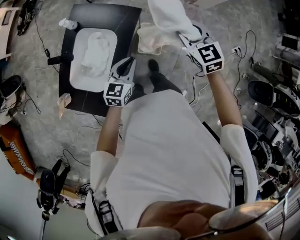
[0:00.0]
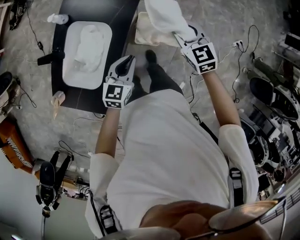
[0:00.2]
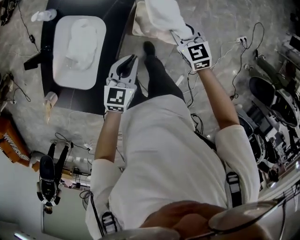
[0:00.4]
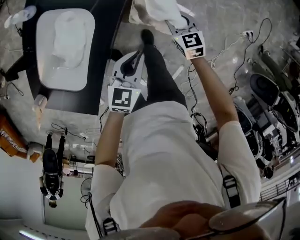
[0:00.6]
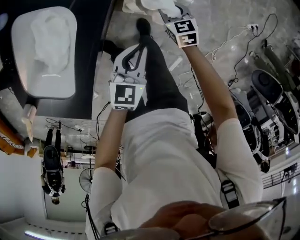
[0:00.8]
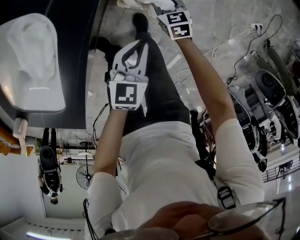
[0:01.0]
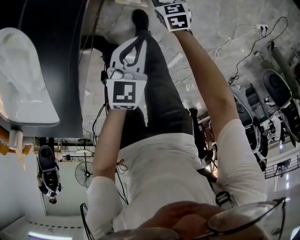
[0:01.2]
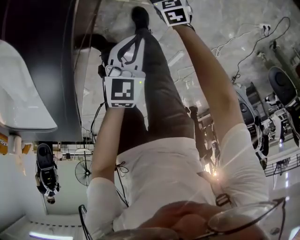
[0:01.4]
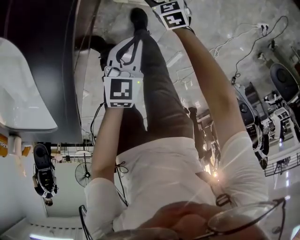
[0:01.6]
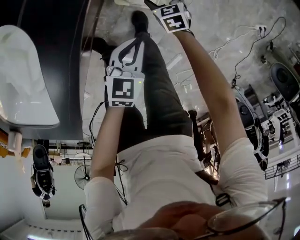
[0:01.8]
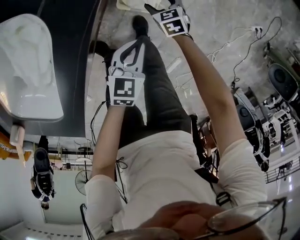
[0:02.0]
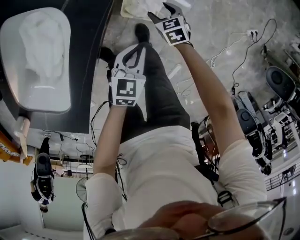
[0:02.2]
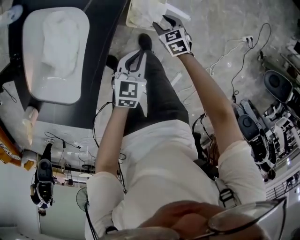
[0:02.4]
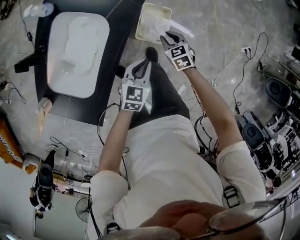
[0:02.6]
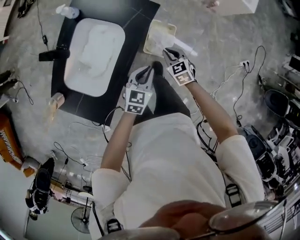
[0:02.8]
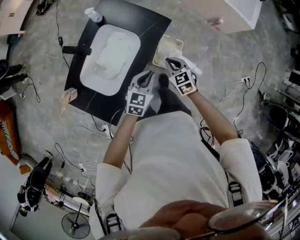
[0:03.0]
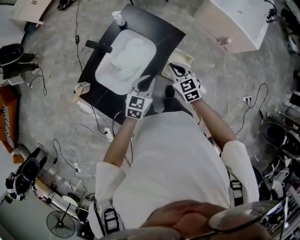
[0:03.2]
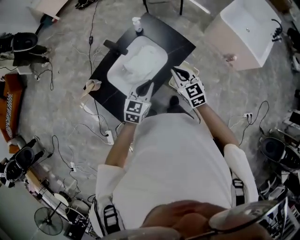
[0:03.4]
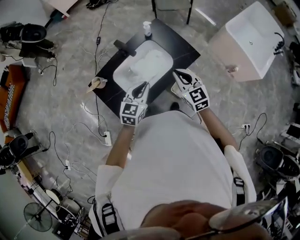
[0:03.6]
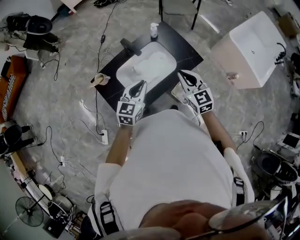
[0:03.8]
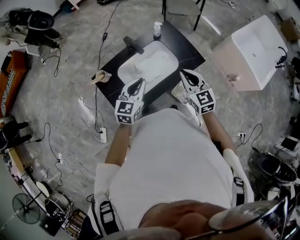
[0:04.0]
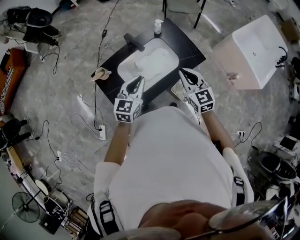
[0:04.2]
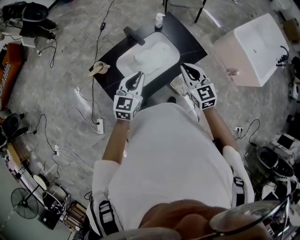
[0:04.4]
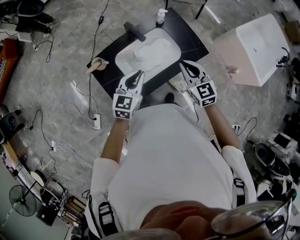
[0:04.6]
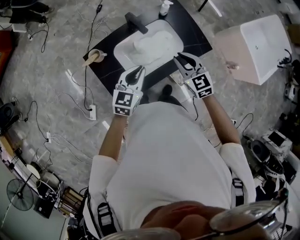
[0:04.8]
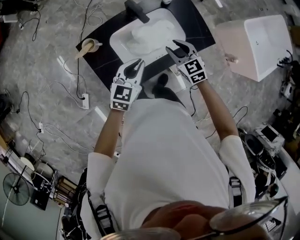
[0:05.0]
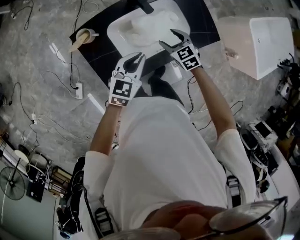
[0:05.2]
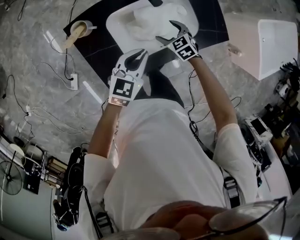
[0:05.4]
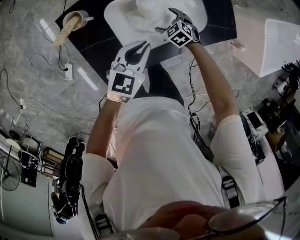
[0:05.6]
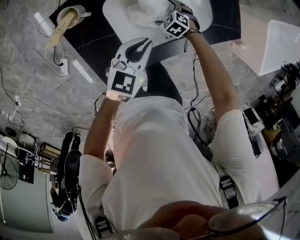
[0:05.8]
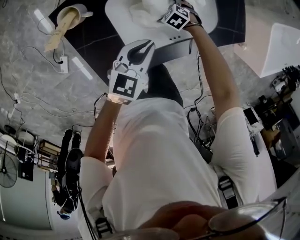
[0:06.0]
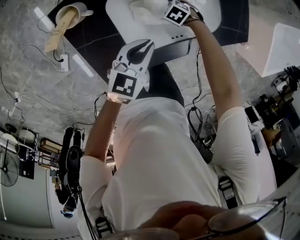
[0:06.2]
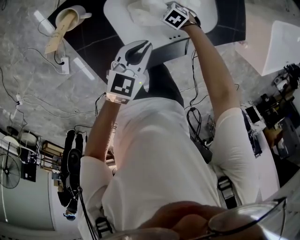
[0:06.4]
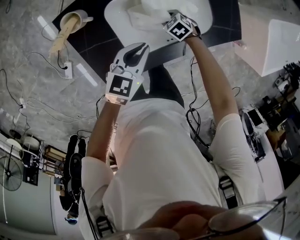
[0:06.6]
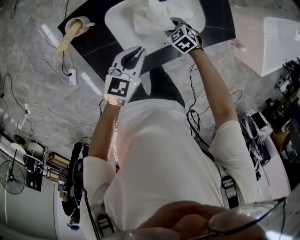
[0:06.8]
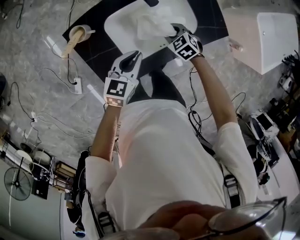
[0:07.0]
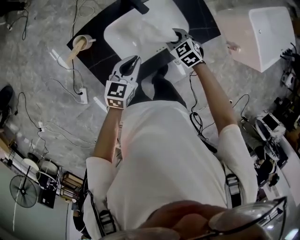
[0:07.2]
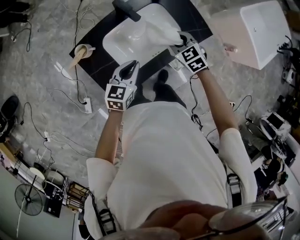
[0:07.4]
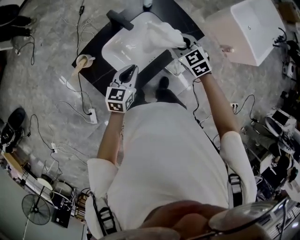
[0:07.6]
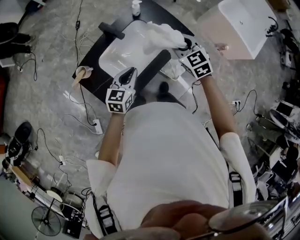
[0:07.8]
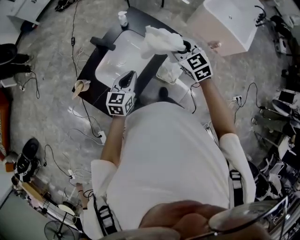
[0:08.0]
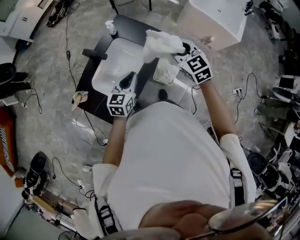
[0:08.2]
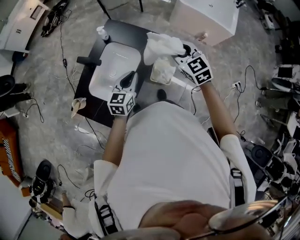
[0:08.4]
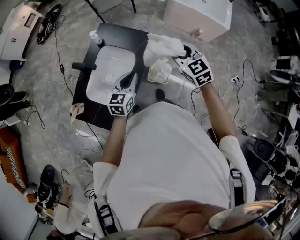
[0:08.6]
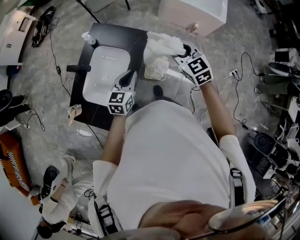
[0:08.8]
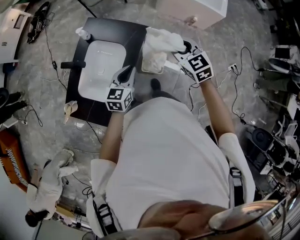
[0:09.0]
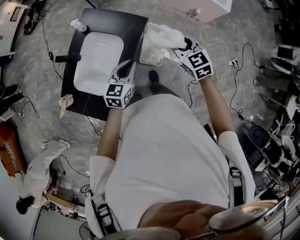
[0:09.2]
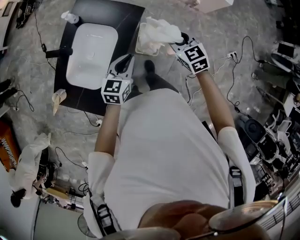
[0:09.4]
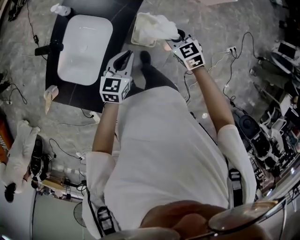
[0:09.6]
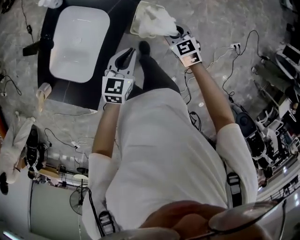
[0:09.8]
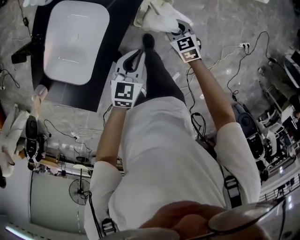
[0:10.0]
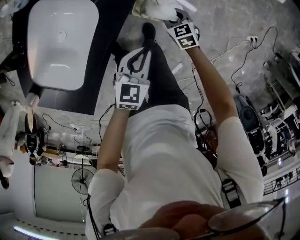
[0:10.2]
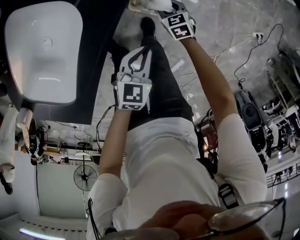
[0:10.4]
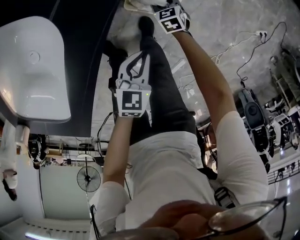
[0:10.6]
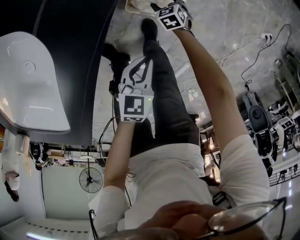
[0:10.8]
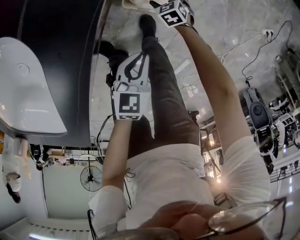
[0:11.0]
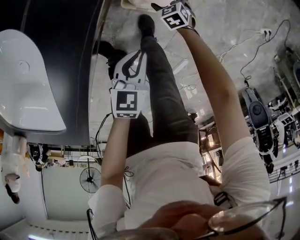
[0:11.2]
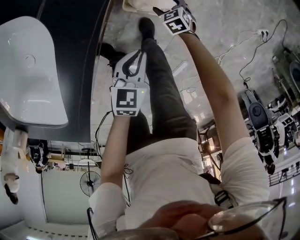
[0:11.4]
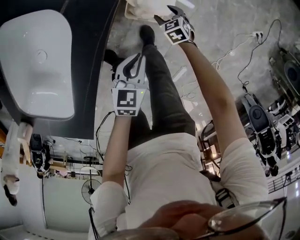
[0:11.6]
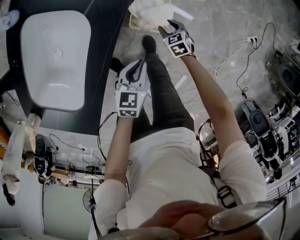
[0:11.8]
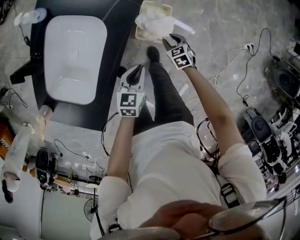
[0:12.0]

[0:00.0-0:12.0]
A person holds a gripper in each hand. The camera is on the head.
0.0 to 1.6 s: The right gripper travels downward by some 70 cm, angles its fingers downward, by roughly 30 degrees, and opens its fingers. The left gripper heads downward, covering some 40 cm.
1.6 to 3.0 s: The left gripper is displaced upward and backward by some 30 cm; the right gripper heads upward and backward, covering approximately 40 cm, changes its angle by roughly 20 degrees, and closes.
3.0 to 4.4 s: The right gripper goes approximately 30 cm upward and to the left, and rotates some 30 degrees; the left gripper goes some 30 cm to the left and upward, and swivels about 30 degrees.
4.4 to 6.0 s: The right gripper shifts roughly 50 cm downward, points its fingers about 60 degrees further downward, and opens its fingers. Meanwhile the left gripper travels downward by about 25 cm, and rotates about 20 degrees.
6.0 to 7.6 s: The left gripper travels upward by approximately 15 cm. The right gripper goes some 40 cm upward, angles its fingers upward, by roughly 40 degrees, and closes.
7.6 to 9.0 s: The right gripper changes place by about 30 cm, and swivels approximately 30 degrees. Meanwhile the left gripper shifts by about 25 cm, and swivels about 30 degrees.
9.0 to 10.4 s: The left gripper travels downward by approximately 40 cm, and swivels about 20 degrees; the right gripper shifts roughly 70 cm downward, and changes its angle by some 30 degrees.
10.4 to 12.0 s: The right gripper moves upward and backward, roughly 15 cm, and opens, then closes again. Meanwhile the left gripper moves upward and to the left, some 10 cm.

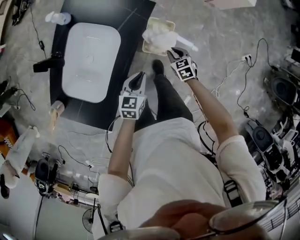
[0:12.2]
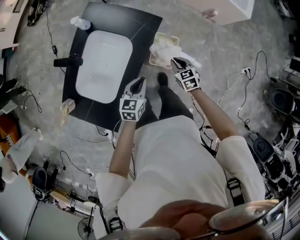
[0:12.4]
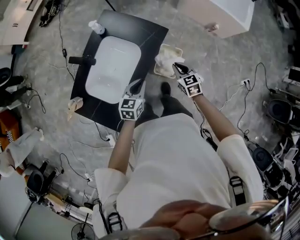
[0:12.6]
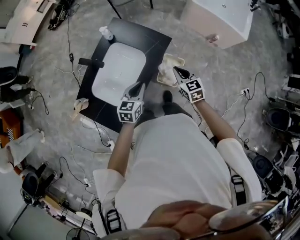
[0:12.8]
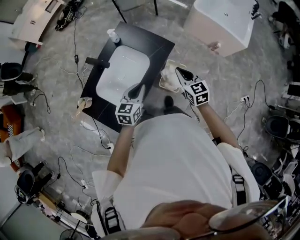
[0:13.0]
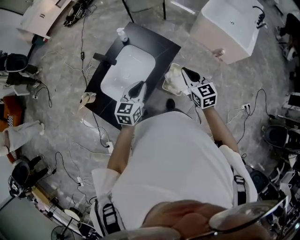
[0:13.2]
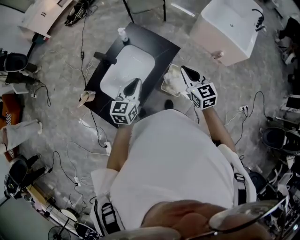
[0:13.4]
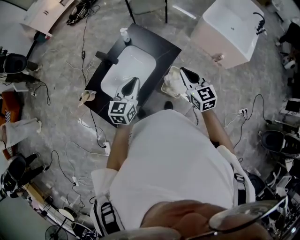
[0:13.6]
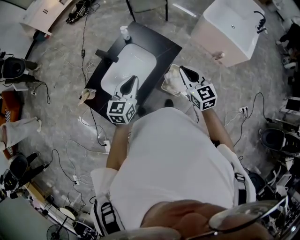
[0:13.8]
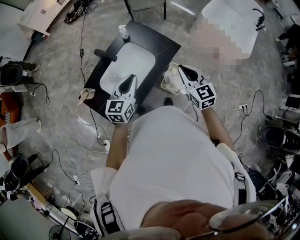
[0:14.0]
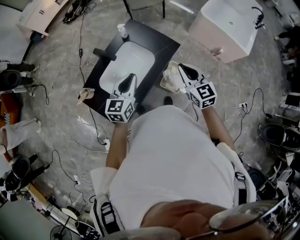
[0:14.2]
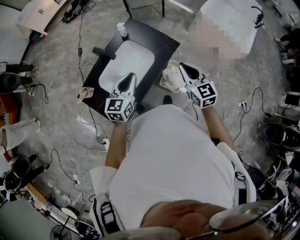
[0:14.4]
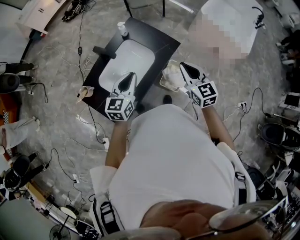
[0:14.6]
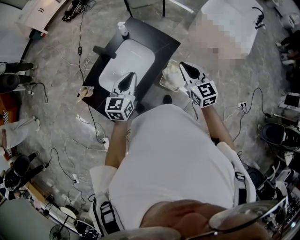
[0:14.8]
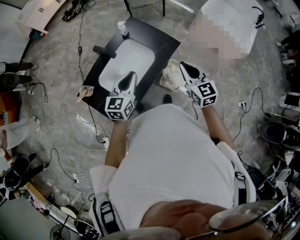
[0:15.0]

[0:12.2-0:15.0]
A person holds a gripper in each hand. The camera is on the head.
12.2 to 13.6 s: The left gripper heads upward and to the left, covering some 40 cm, and swivels roughly 30 degrees, while the right gripper shifts roughly 50 cm upward, and tilts its fingers roughly 40 degrees upward.
13.6 to 15.0 s: The grippers stay close to where they were, moving slightly.

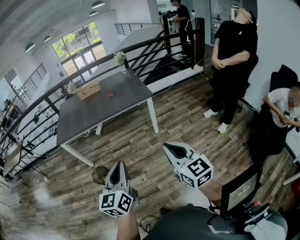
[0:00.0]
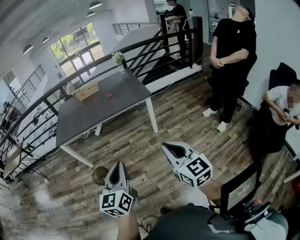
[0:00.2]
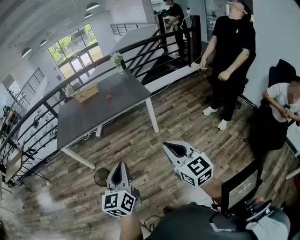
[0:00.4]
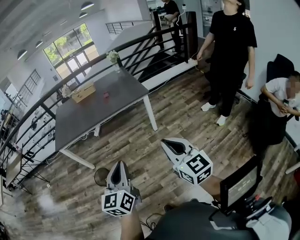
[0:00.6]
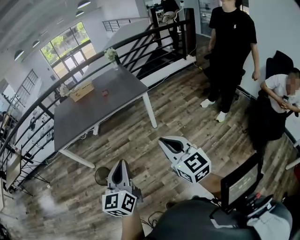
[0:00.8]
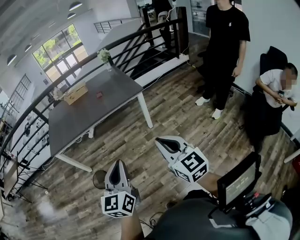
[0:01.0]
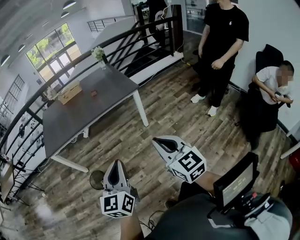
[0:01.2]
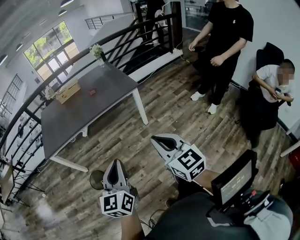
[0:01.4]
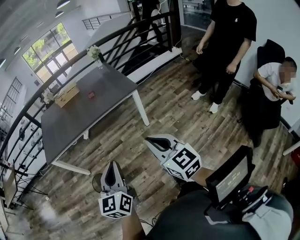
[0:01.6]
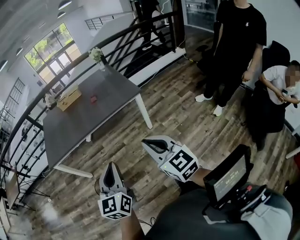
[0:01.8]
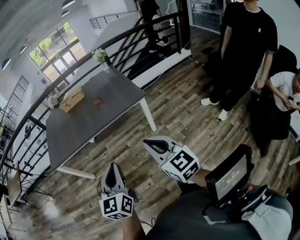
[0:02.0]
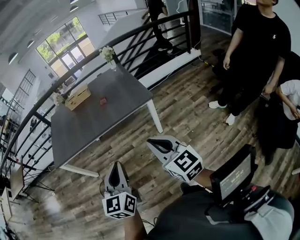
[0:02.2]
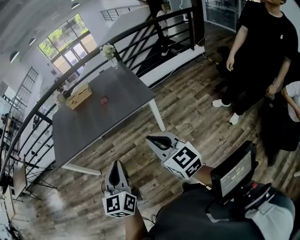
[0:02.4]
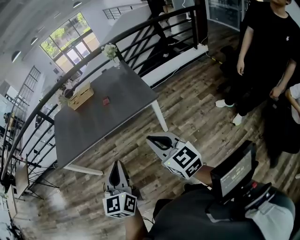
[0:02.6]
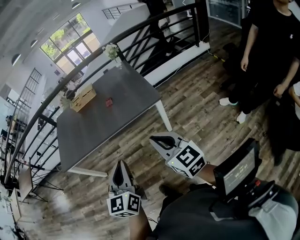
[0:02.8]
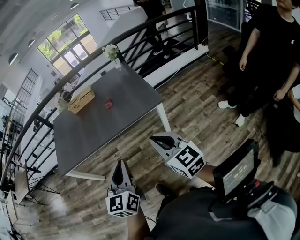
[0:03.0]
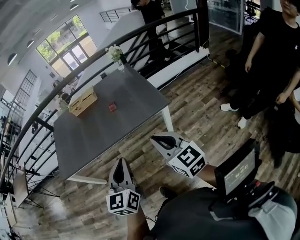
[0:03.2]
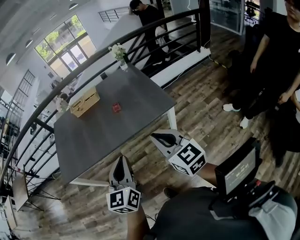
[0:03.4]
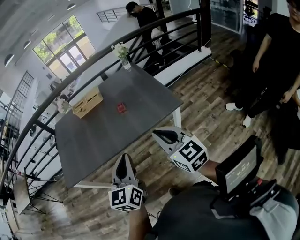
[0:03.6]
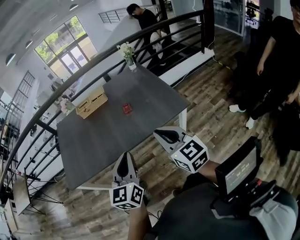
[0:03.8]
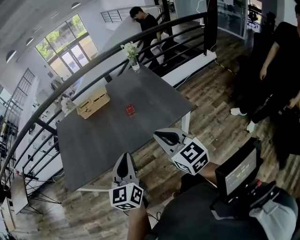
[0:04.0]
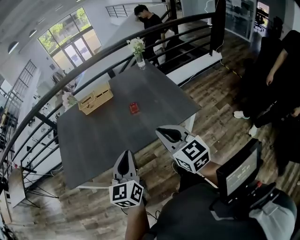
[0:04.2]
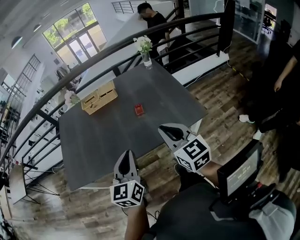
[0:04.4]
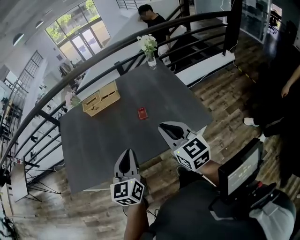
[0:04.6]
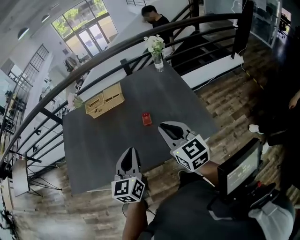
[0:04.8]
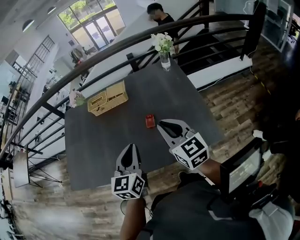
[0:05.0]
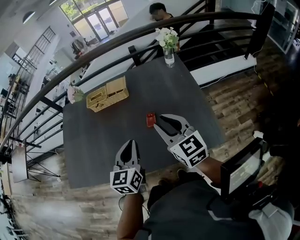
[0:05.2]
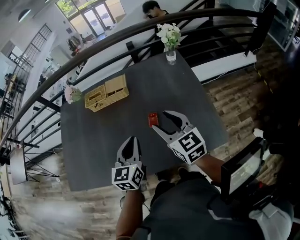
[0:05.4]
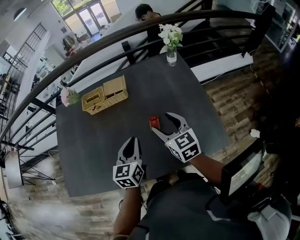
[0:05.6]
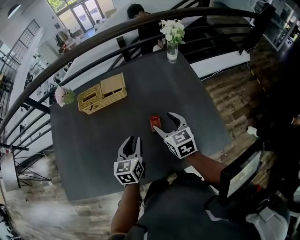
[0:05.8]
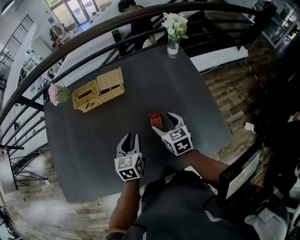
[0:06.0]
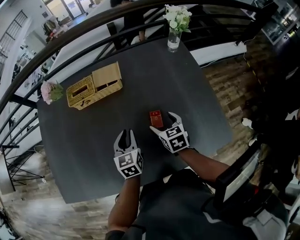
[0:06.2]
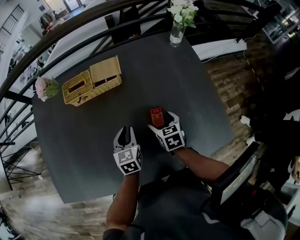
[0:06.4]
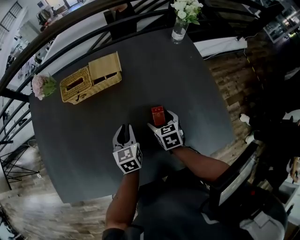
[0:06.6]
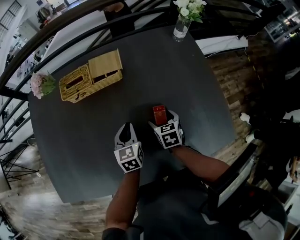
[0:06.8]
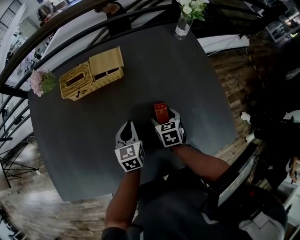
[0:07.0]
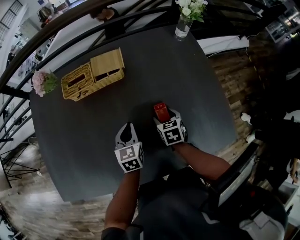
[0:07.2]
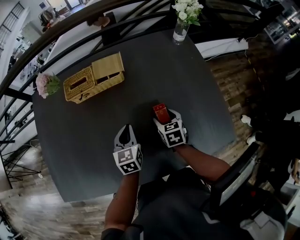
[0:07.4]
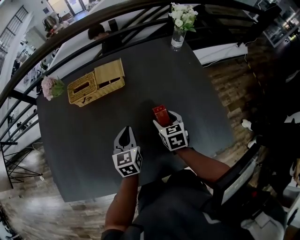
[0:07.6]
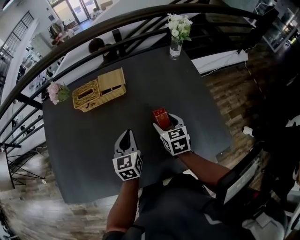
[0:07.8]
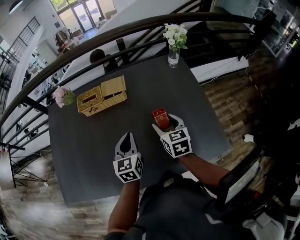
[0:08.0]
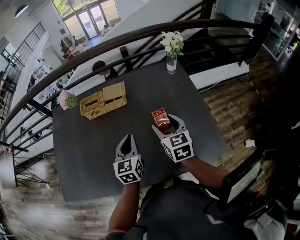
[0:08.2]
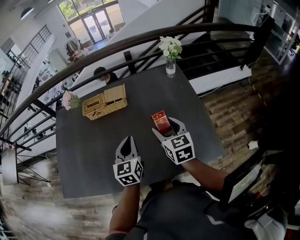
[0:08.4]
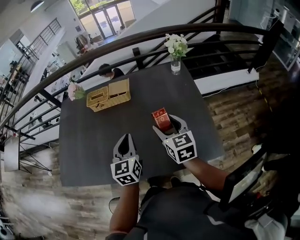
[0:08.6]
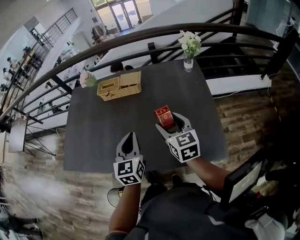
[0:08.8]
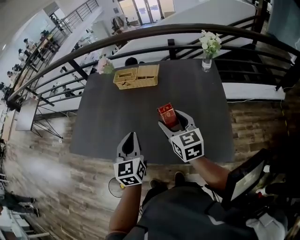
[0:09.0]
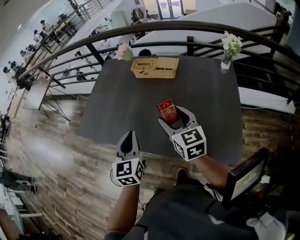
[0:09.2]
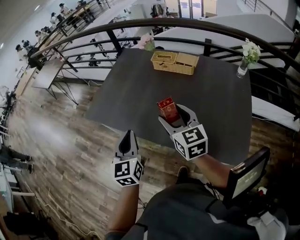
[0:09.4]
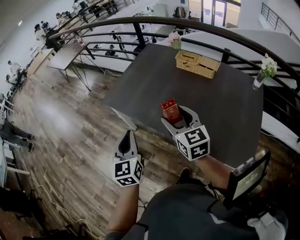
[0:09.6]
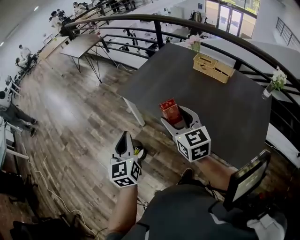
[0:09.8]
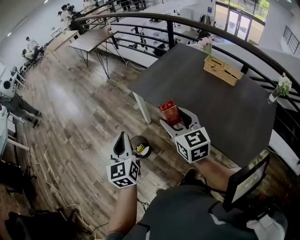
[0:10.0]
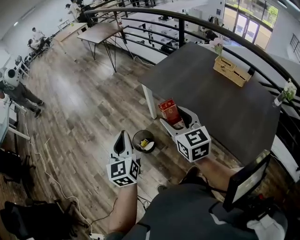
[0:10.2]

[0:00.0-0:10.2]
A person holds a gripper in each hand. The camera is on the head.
0.0 to 1.4 s: The right gripper is displaced forward and to the left by some 10 cm. Meanwhile the left gripper is displaced forward by approximately 10 cm.
1.4 to 3.0 s: The two grippers go some 30 cm forward.
3.0 to 4.4 s: Both grippers travel together forward and to the left, approximately 30 cm.
4.4 to 5.8 s: The grippers both shift forward and downward by approximately 35 cm. The right gripper swivels approximately 20 degrees, and opens its fingers.
5.8 to 7.2 s: The right gripper heads downward, covering approximately 20 cm, and rotates approximately 30 degrees; the left gripper is displaced downward and forward by some 15 cm.
7.2 to 8.8 s: The right gripper shifts approximately 25 cm upward, and tilts its fingers some 30 degrees upward; the left gripper shifts some 25 cm upward and backward, and swivels approximately 20 degrees.
8.8 to 10.2 s: The two grippers travel together, roughly 60 cm. The left gripper swivels approximately 60 degrees, while the right gripper turns by approximately 50 degrees.
